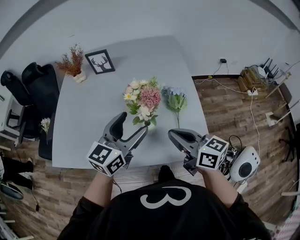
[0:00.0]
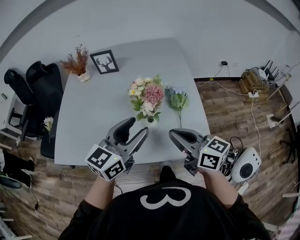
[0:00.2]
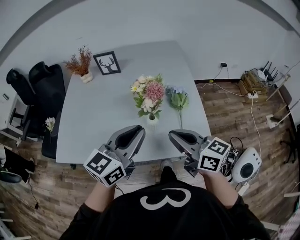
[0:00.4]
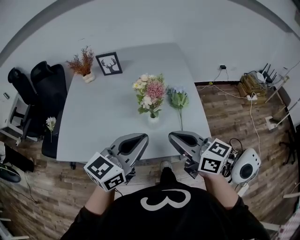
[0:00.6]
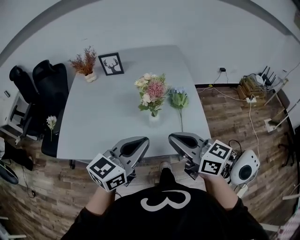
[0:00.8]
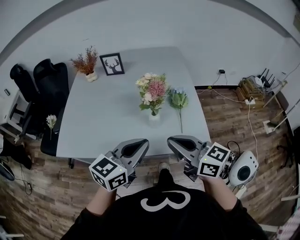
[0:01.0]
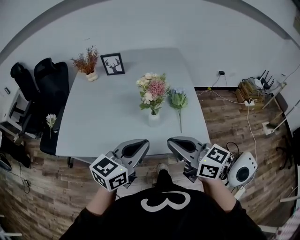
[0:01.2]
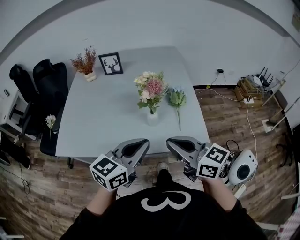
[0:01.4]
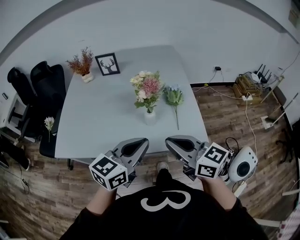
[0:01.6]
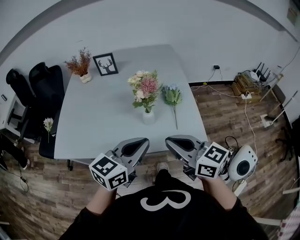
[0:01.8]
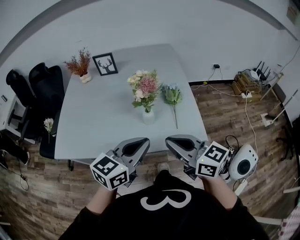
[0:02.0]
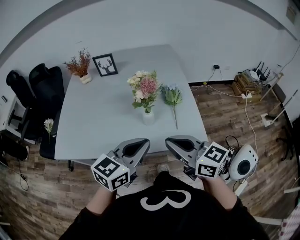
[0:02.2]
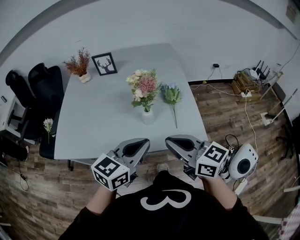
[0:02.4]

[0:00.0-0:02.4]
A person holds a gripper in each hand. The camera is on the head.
0:00.0 to 0:01.2: The left gripper shifts some 15 cm backward, and closes its fingers. The right gripper moves backward and upward, approximately 15 cm.
0:01.2 to 0:02.4: The grippers stay close to where they were, moving slightly.

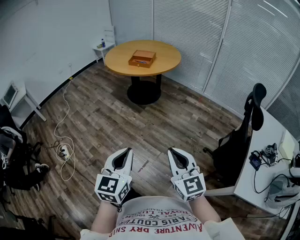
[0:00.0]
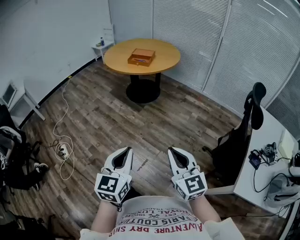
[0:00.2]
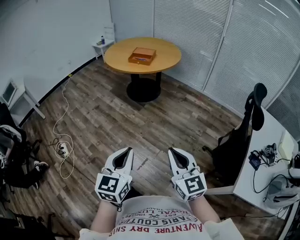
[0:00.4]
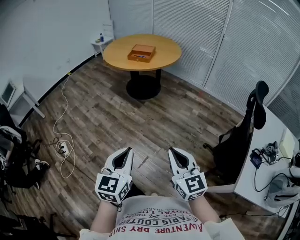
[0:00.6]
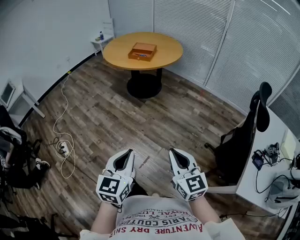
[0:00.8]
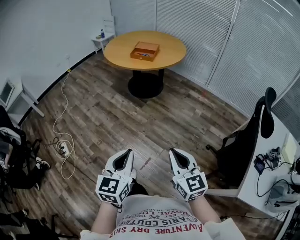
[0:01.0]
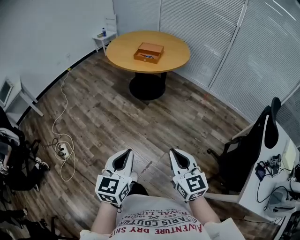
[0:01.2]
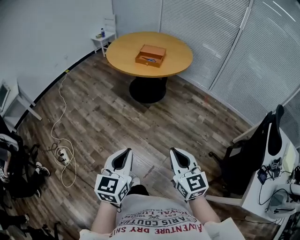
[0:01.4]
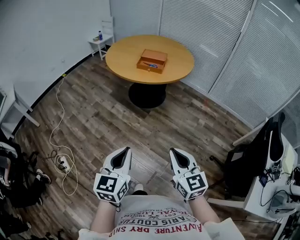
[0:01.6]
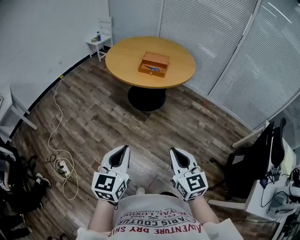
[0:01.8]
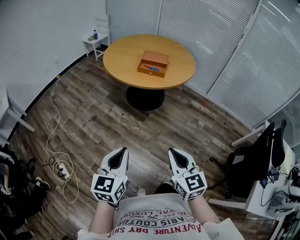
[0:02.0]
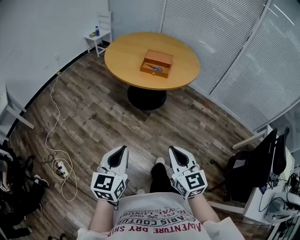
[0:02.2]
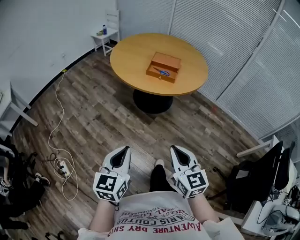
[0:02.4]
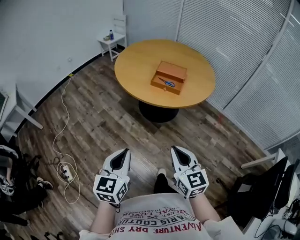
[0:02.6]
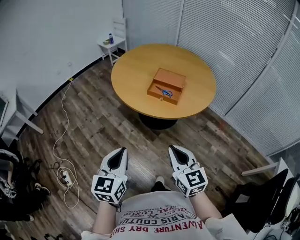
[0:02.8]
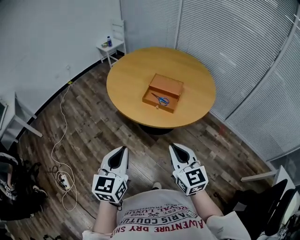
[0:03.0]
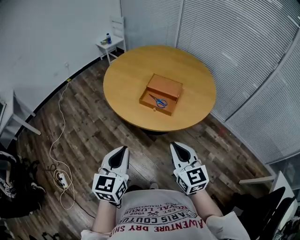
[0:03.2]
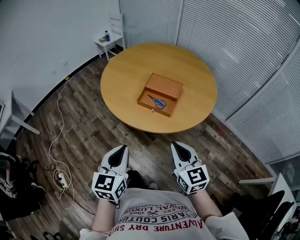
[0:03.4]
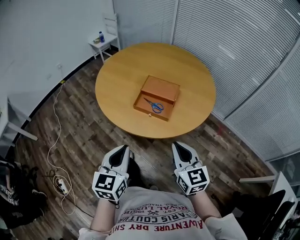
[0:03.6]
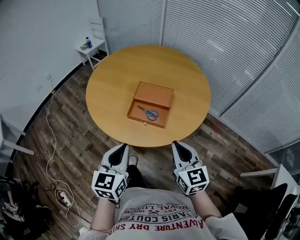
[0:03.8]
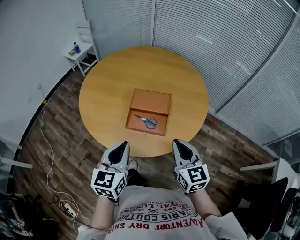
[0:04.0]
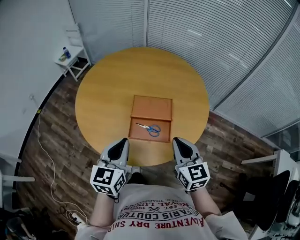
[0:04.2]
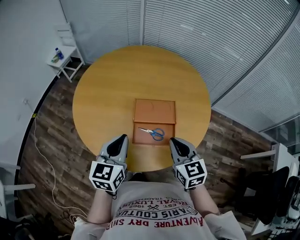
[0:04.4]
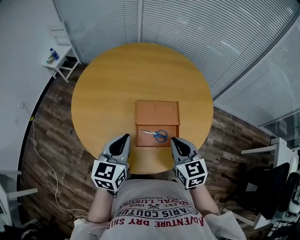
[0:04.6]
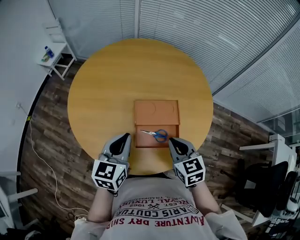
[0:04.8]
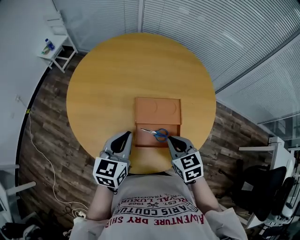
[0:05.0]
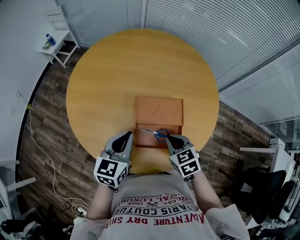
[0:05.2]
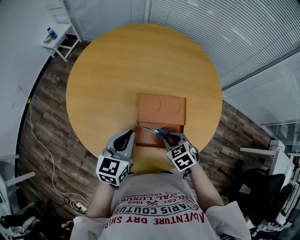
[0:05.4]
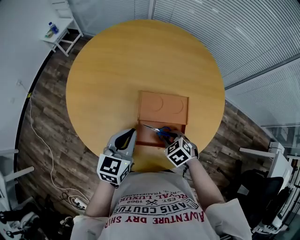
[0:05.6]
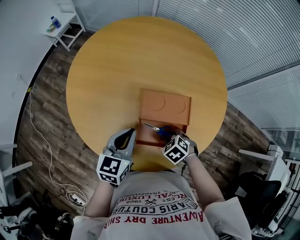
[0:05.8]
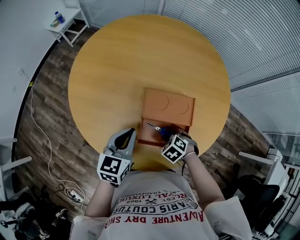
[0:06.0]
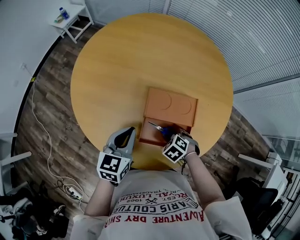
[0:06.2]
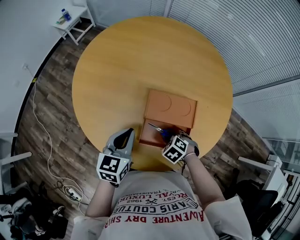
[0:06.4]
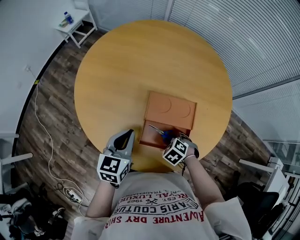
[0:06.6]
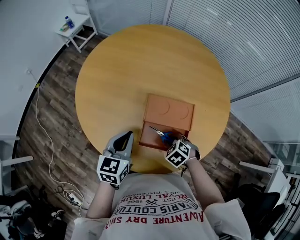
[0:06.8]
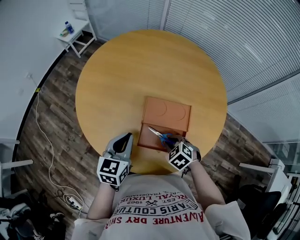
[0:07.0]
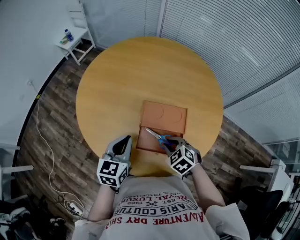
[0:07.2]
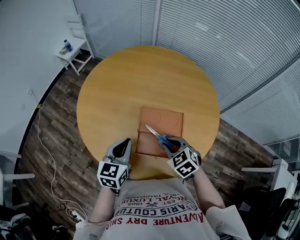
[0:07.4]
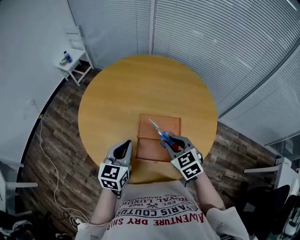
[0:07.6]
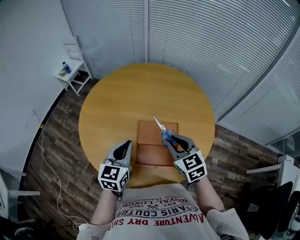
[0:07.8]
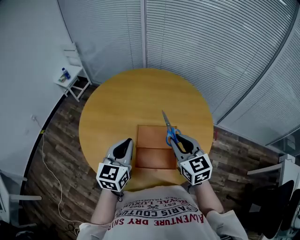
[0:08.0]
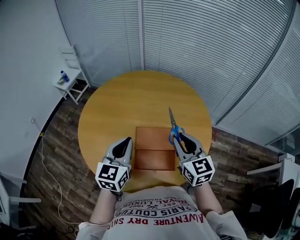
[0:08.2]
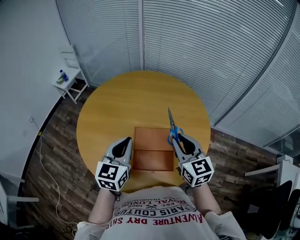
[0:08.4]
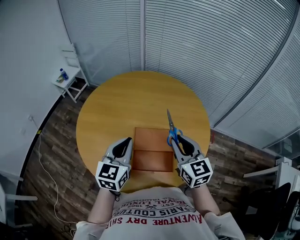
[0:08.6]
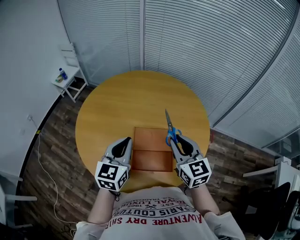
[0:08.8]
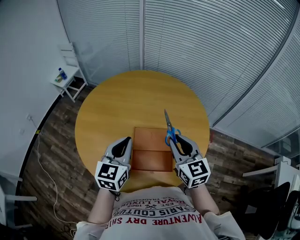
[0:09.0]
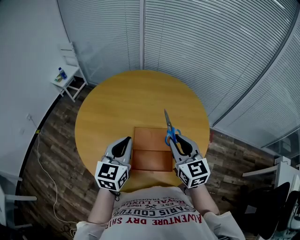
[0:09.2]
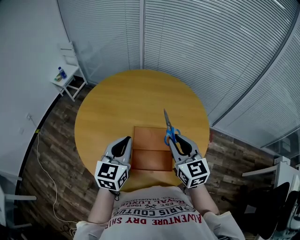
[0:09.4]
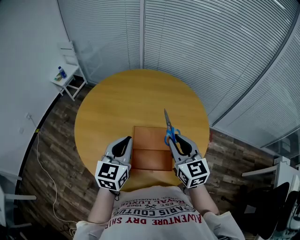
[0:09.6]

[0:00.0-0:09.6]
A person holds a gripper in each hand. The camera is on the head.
0:00.0 to 0:01.6: The grippers both shift forward and to the left by about 30 cm.
0:01.6 to 0:03.2: The pair of grippers is taken forward, approximately 50 cm.
0:03.2 to 0:04.8: The right gripper shifts by approximately 35 cm, and turns by about 30 degrees. Meanwhile the left gripper moves some 40 cm, and turns by approximately 30 degrees.
0:04.8 to 0:06.4: The right gripper moves downward, roughly 20 cm, and angles its fingers downward, by about 40 degrees; the left gripper goes some 10 cm downward.
0:06.4 to 0:08.0: The right gripper shifts some 30 cm upward, and angles its fingers upward, by about 60 degrees; the left gripper goes some 15 cm upward.
0:08.0 to 0:09.6: The grippers move only a little.

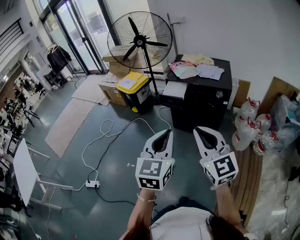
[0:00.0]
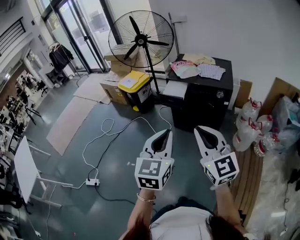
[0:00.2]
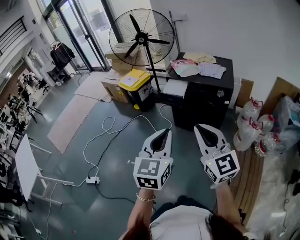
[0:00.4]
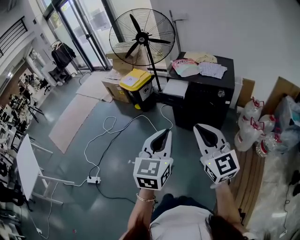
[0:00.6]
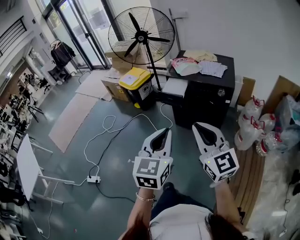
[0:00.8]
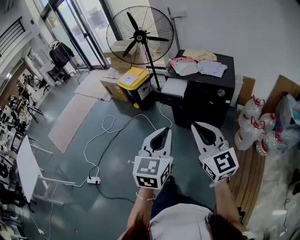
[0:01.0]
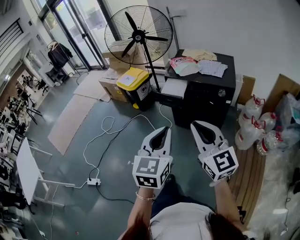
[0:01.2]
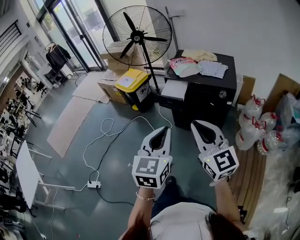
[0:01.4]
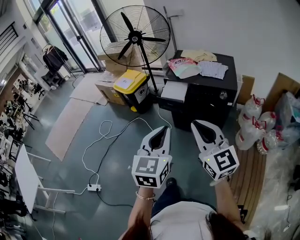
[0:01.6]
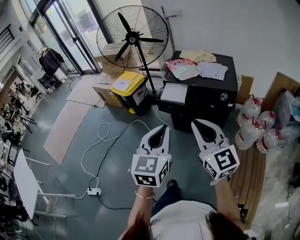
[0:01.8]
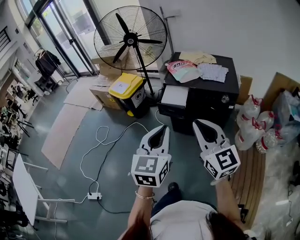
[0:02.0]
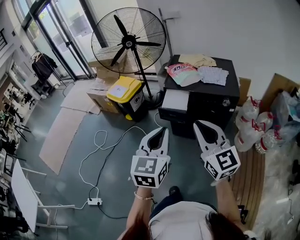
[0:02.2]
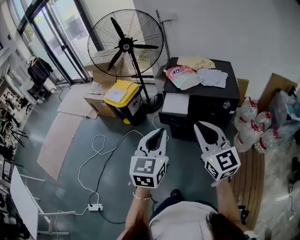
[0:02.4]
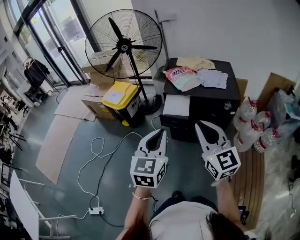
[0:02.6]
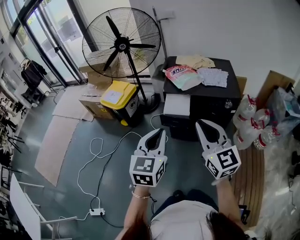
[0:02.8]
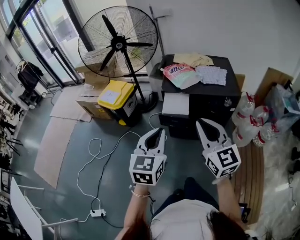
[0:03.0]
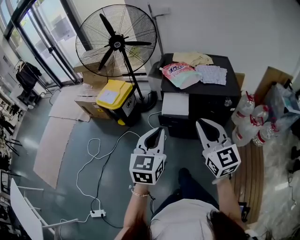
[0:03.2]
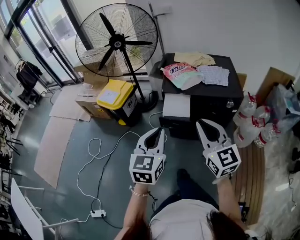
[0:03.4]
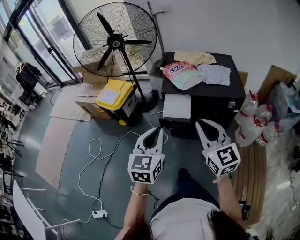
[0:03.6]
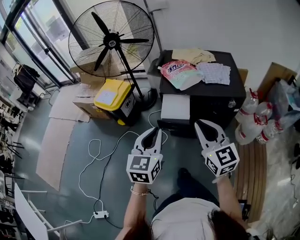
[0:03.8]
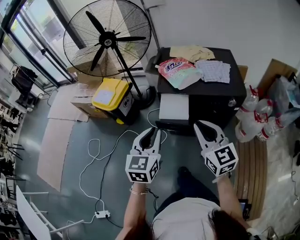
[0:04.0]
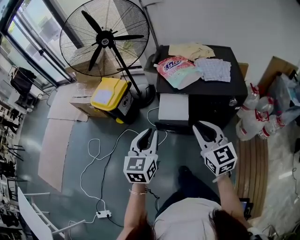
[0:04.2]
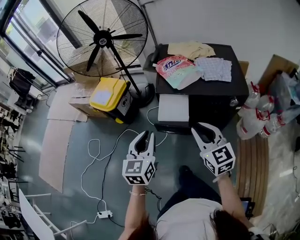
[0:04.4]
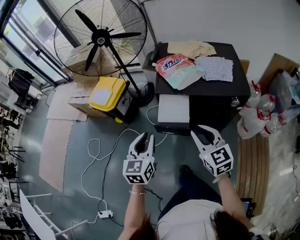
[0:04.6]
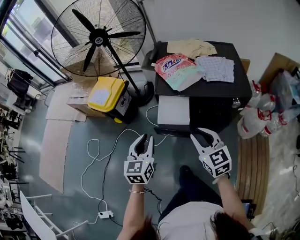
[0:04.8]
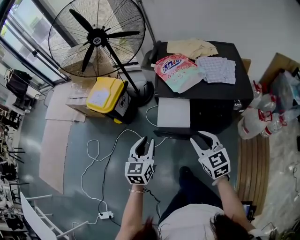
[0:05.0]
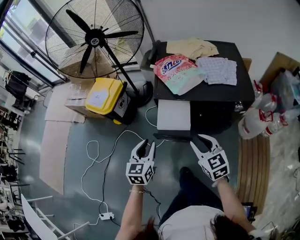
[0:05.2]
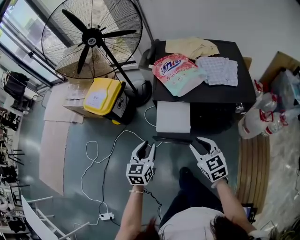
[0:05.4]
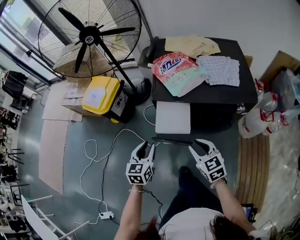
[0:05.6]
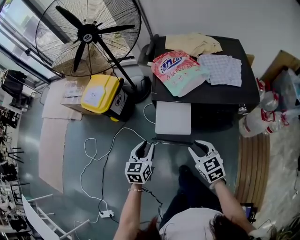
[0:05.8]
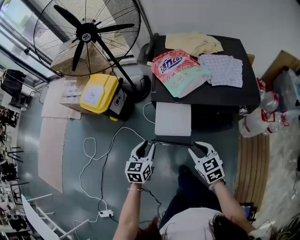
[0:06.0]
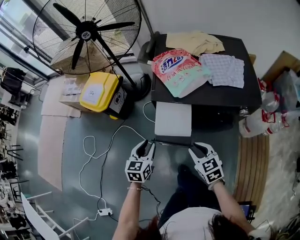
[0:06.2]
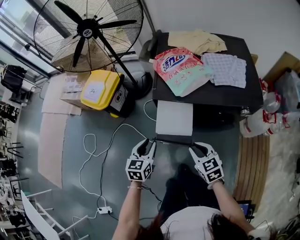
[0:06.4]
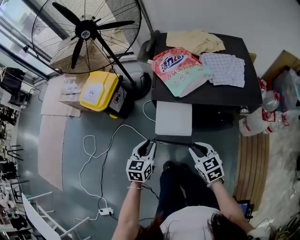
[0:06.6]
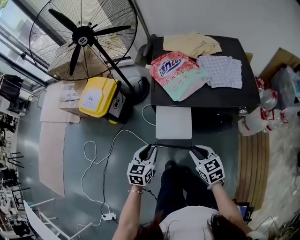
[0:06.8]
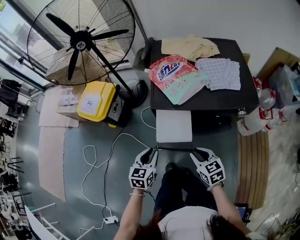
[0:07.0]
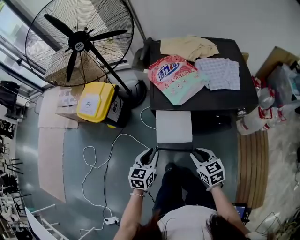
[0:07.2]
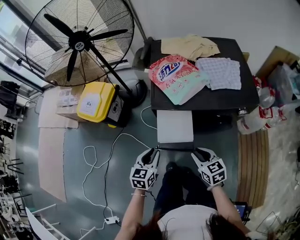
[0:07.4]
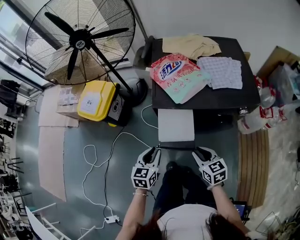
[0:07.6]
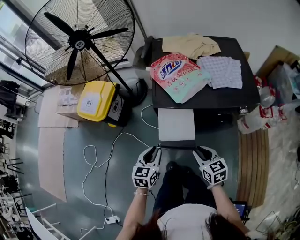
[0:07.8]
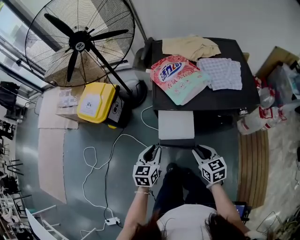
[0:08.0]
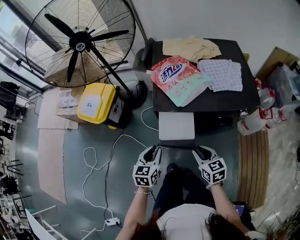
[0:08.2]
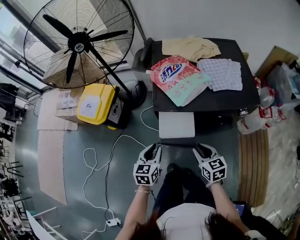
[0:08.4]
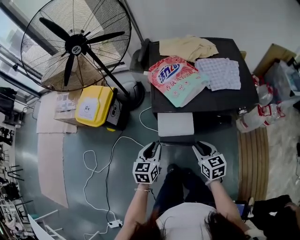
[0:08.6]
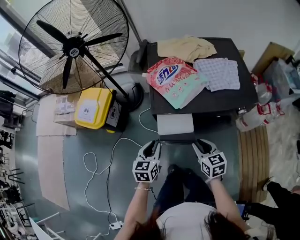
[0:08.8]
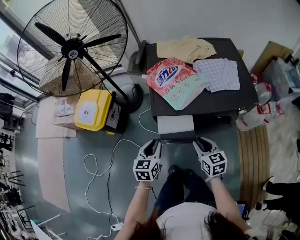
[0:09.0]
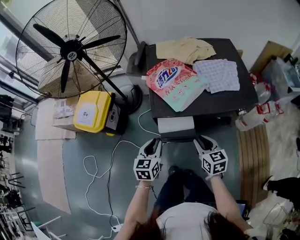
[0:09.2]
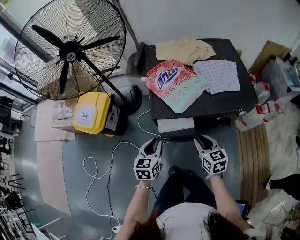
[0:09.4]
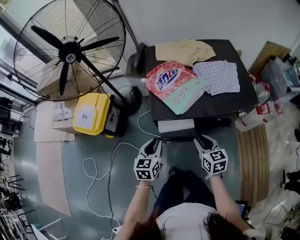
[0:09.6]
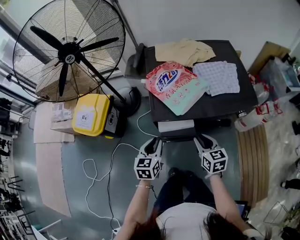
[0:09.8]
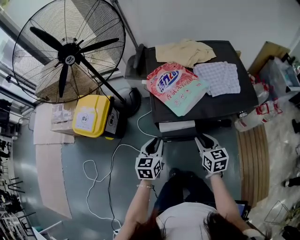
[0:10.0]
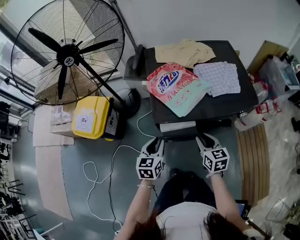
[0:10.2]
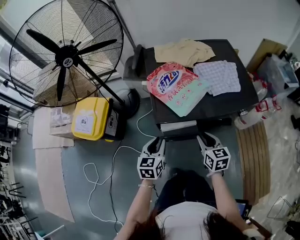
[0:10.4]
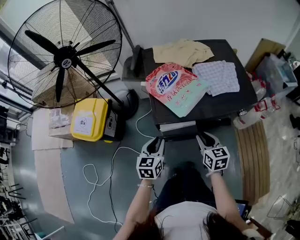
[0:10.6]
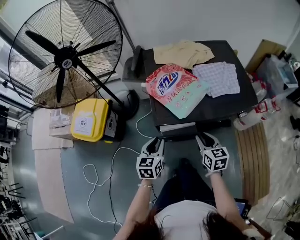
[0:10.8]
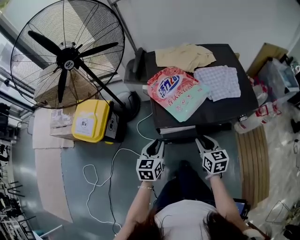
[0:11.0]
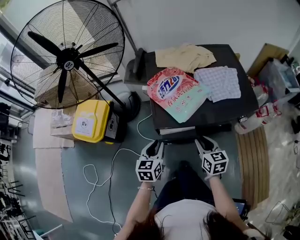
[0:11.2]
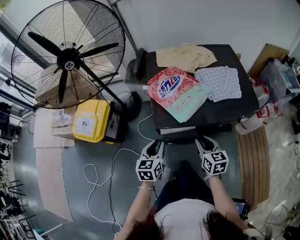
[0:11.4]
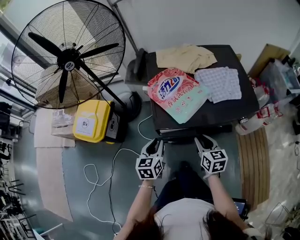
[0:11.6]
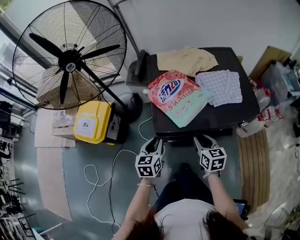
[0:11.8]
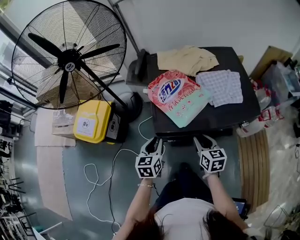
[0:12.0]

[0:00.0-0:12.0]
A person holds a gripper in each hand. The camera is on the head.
0:00.0 to 0:01.6: Both grippers move forward, some 10 cm.
0:01.6 to 0:03.0: Both grippers move forward and to the left, roughly 20 cm.
0:03.0 to 0:04.4: The left gripper moves forward and downward, about 15 cm. Meanwhile the right gripper shifts some 15 cm downward and forward.
0:04.4 to 0:06.0: The left gripper travels downward and forward by some 20 cm. Meanwhile the right gripper shifts some 20 cm downward, and swivels roughly 20 degrees.
0:06.0 to 0:07.6: The grippers make only small movements.
0:07.6 to 0:09.0: The grippers both shift forward by about 5 cm.
0:09.0 to 0:10.4: The grippers stay close to where they were, moving slightly.
0:10.4 to 0:12.0: There are only small adjustments of the grippers.
